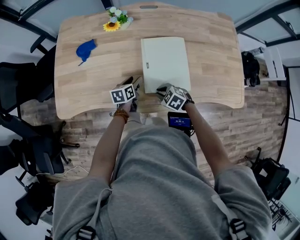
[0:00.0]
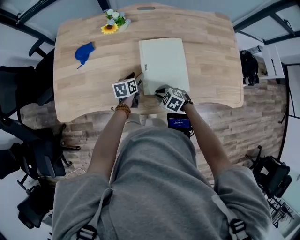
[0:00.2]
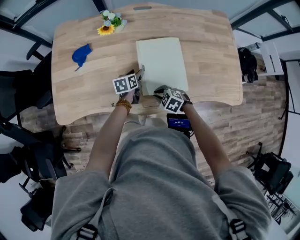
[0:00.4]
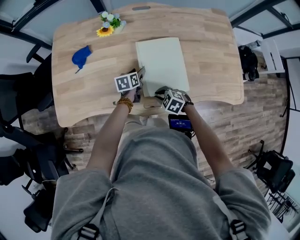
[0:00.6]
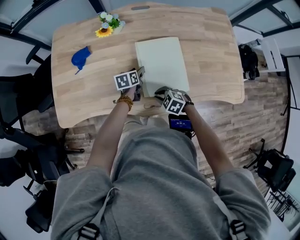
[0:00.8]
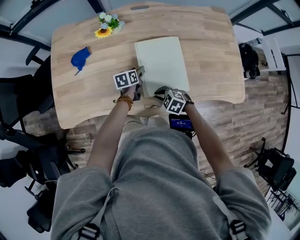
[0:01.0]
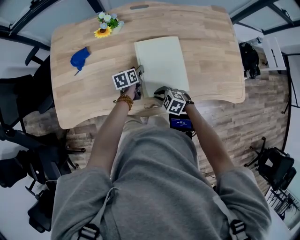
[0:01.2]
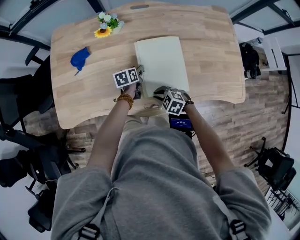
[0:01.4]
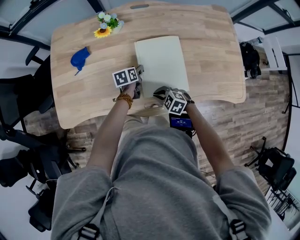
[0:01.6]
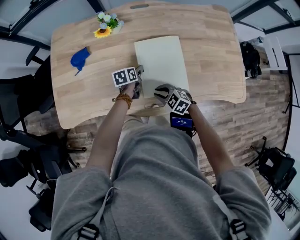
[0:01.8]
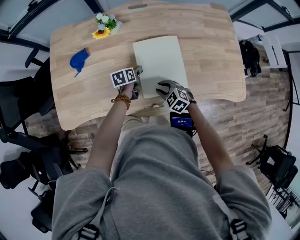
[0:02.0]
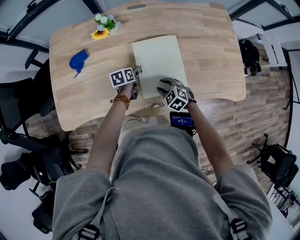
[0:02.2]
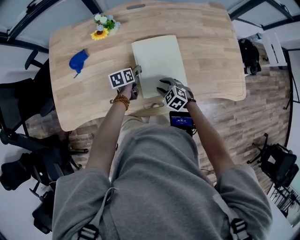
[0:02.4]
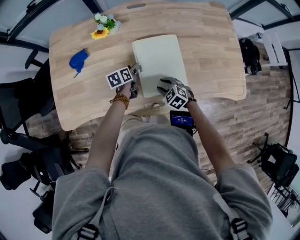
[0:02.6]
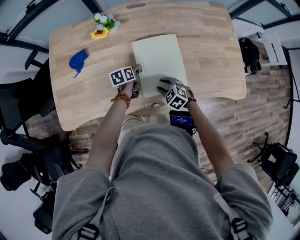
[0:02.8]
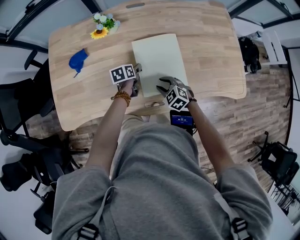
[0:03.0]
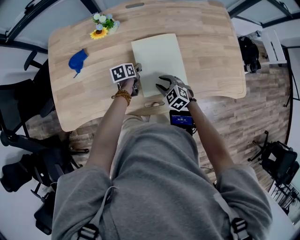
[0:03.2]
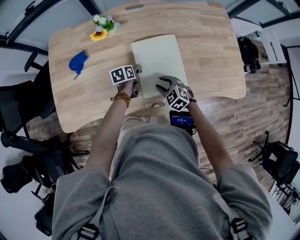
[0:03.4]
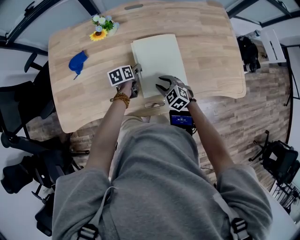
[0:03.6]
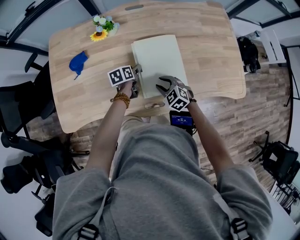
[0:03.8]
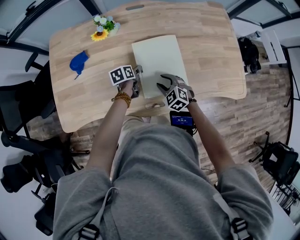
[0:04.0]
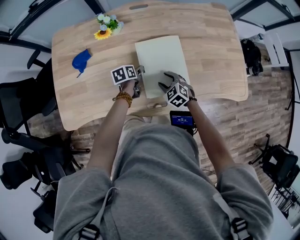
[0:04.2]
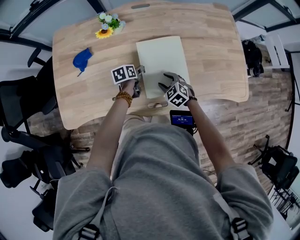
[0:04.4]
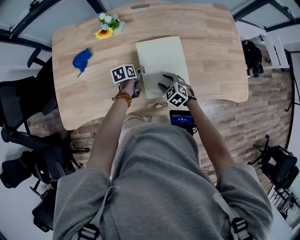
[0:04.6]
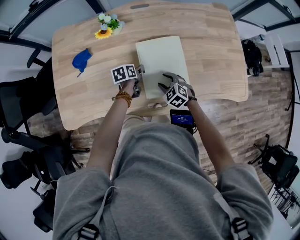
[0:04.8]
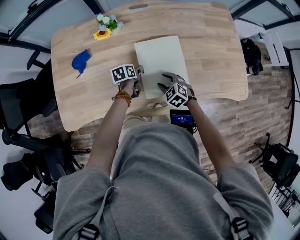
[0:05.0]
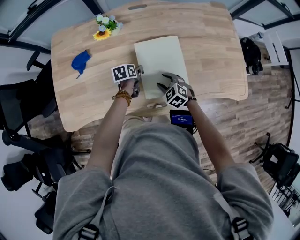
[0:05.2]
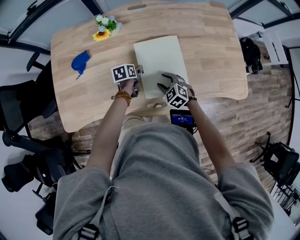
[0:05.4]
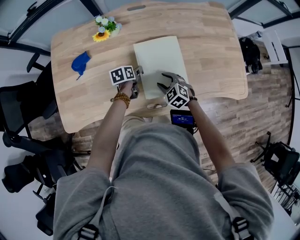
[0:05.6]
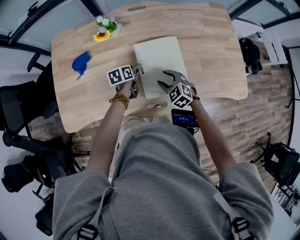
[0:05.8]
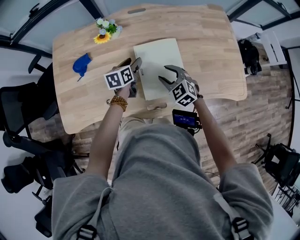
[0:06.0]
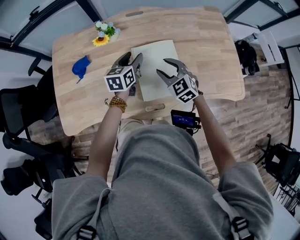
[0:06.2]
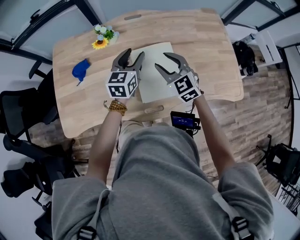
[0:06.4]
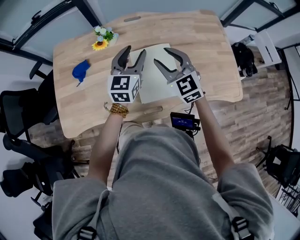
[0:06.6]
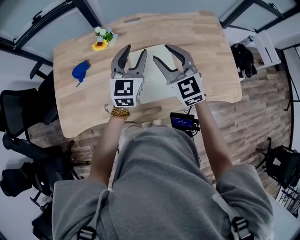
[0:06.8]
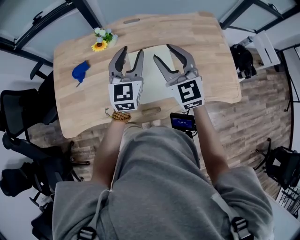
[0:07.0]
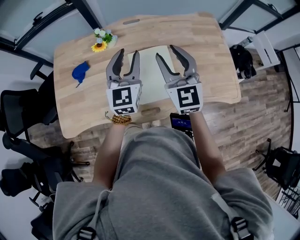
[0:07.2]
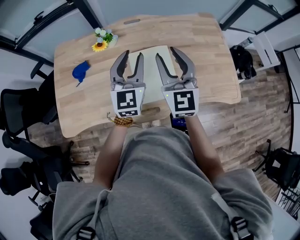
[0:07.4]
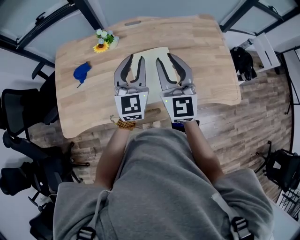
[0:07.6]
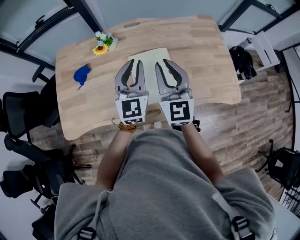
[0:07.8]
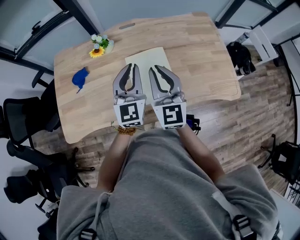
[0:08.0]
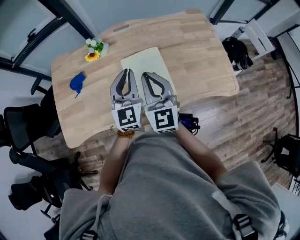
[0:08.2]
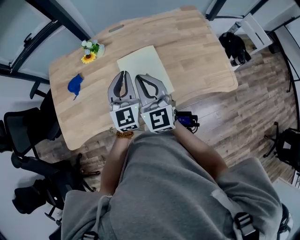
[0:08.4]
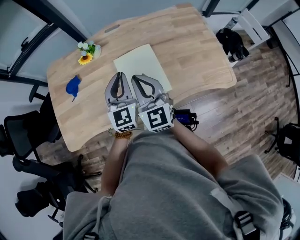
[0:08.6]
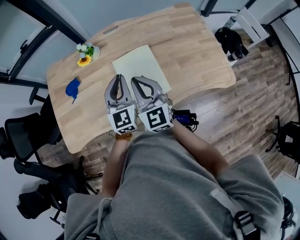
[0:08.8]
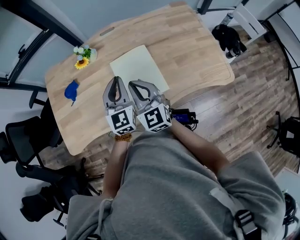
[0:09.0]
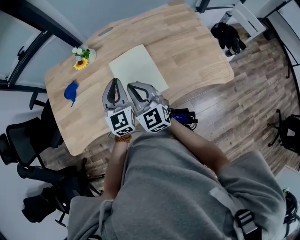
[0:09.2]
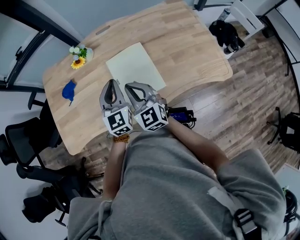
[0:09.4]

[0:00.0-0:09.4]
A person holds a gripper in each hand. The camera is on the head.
0:00.0 to 0:01.6: The left gripper travels forward and to the right by approximately 10 cm.
0:01.6 to 0:03.2: The right gripper is displaced forward by some 5 cm, swivels roughly 20 degrees, and opens up.
0:03.2 to 0:04.8: The grippers make only small movements.
0:04.8 to 0:06.2: The two grippers go about 15 cm upward. The right gripper swivels some 20 degrees. The left gripper rotates about 40 degrees.
0:06.2 to 0:07.8: The right gripper shifts some 20 cm upward, tilts its fingers some 30 degrees upward, and closes its fingers, while the left gripper is displaced upward and backward by some 20 cm, changes its angle by some 40 degrees, and closes up.
0:07.8 to 0:09.4: The right gripper is displaced downward by approximately 10 cm. Meanwhile the left gripper travels downward by roughly 10 cm.

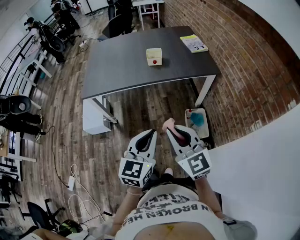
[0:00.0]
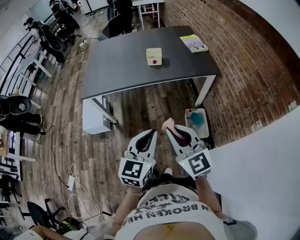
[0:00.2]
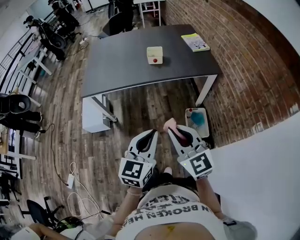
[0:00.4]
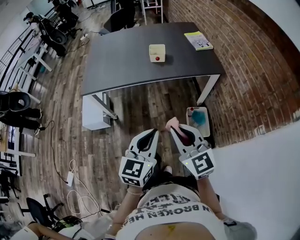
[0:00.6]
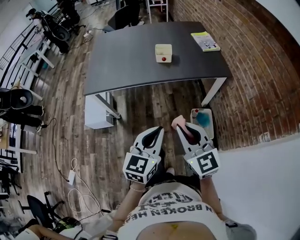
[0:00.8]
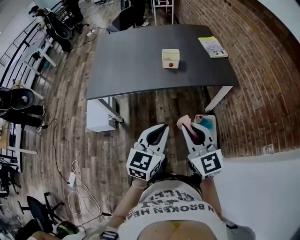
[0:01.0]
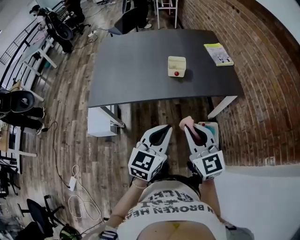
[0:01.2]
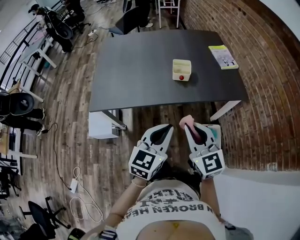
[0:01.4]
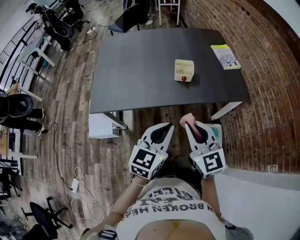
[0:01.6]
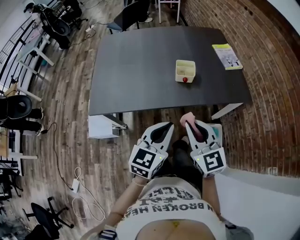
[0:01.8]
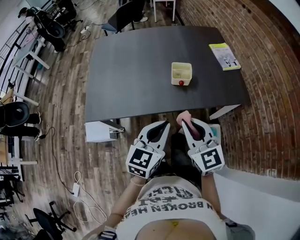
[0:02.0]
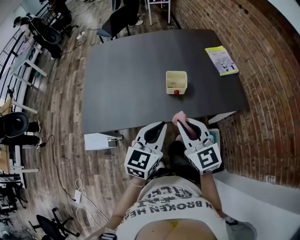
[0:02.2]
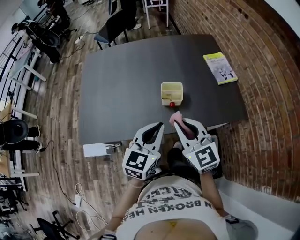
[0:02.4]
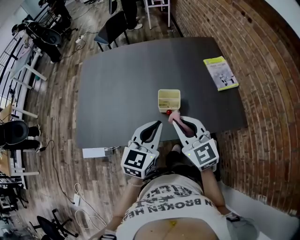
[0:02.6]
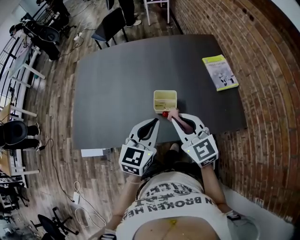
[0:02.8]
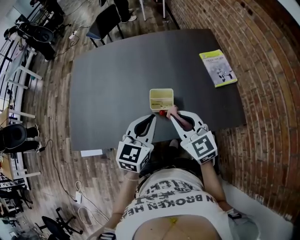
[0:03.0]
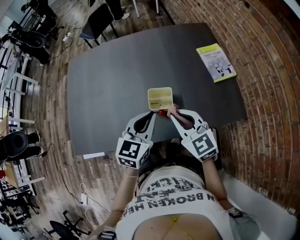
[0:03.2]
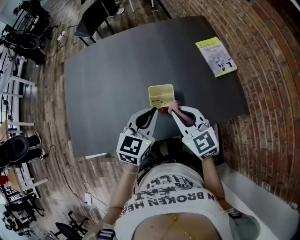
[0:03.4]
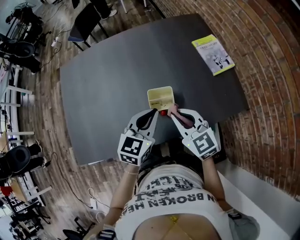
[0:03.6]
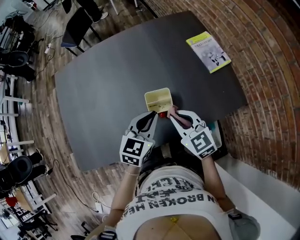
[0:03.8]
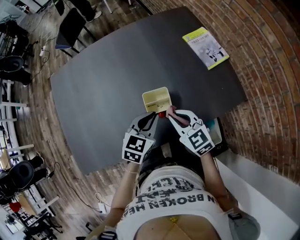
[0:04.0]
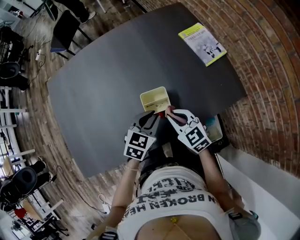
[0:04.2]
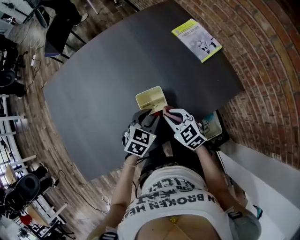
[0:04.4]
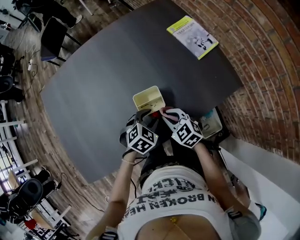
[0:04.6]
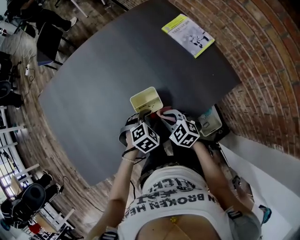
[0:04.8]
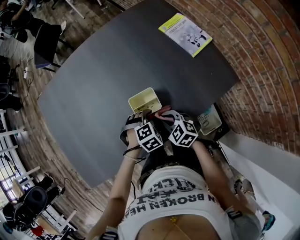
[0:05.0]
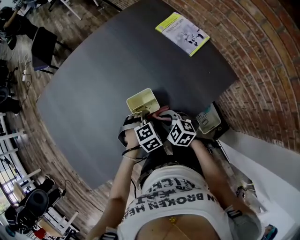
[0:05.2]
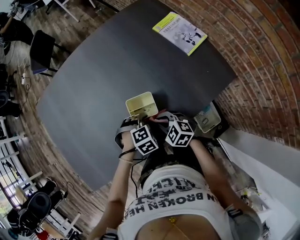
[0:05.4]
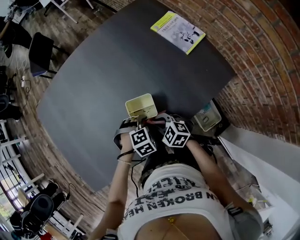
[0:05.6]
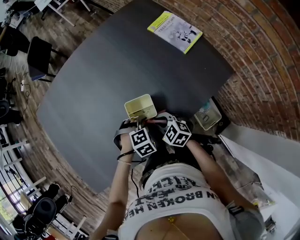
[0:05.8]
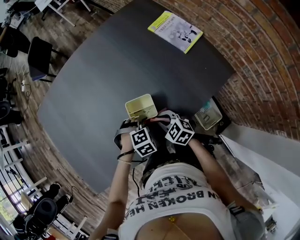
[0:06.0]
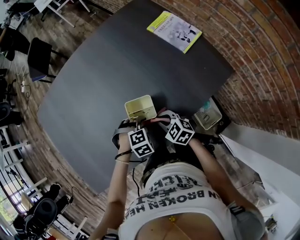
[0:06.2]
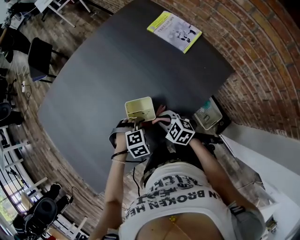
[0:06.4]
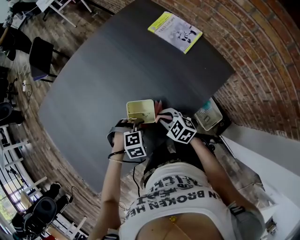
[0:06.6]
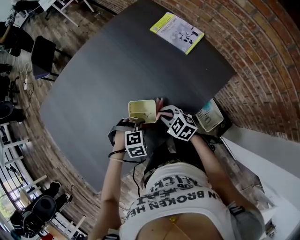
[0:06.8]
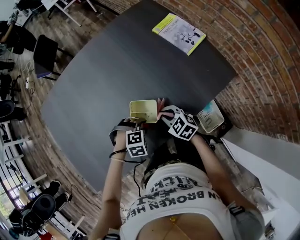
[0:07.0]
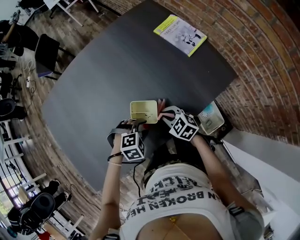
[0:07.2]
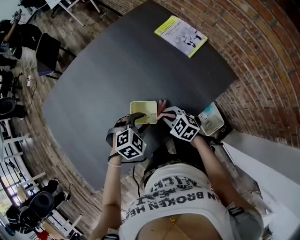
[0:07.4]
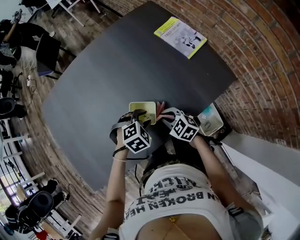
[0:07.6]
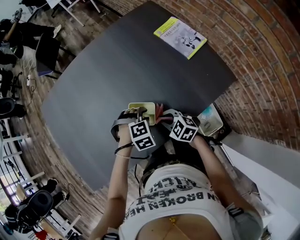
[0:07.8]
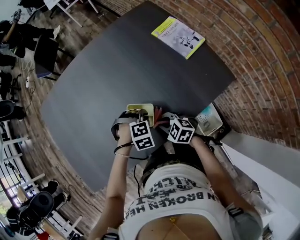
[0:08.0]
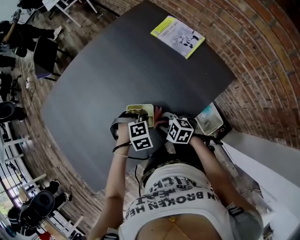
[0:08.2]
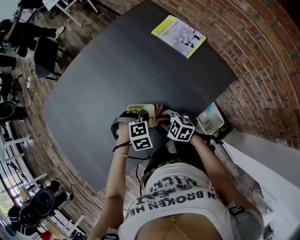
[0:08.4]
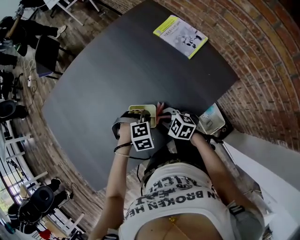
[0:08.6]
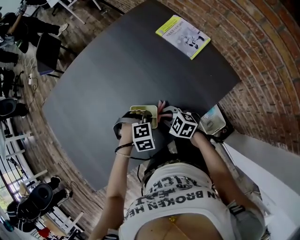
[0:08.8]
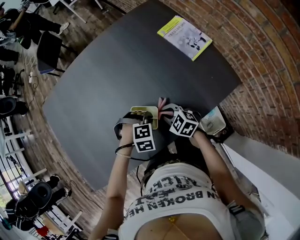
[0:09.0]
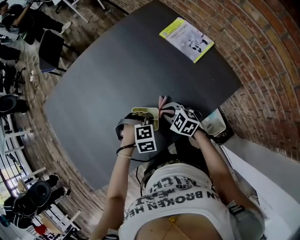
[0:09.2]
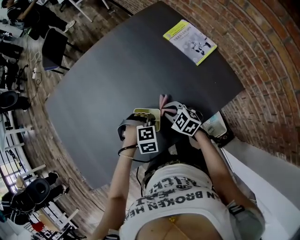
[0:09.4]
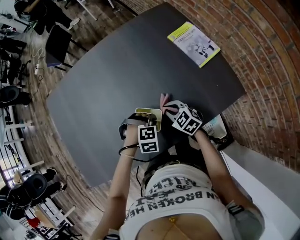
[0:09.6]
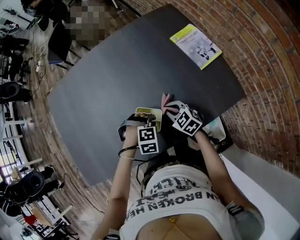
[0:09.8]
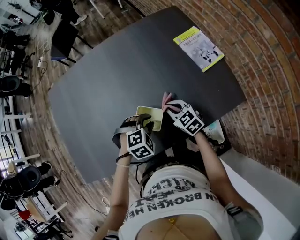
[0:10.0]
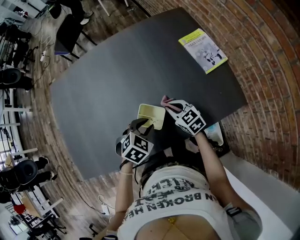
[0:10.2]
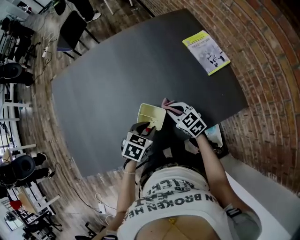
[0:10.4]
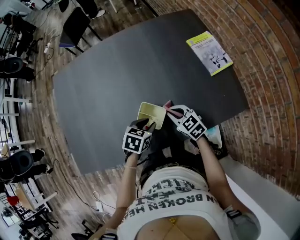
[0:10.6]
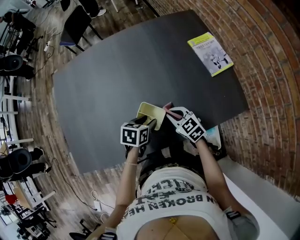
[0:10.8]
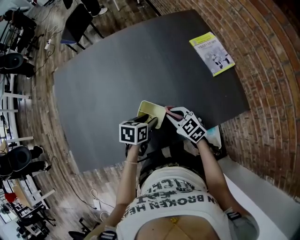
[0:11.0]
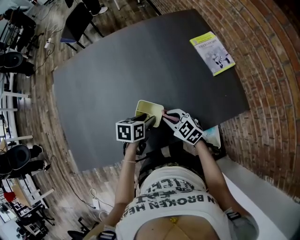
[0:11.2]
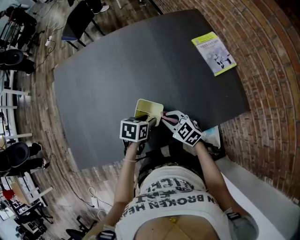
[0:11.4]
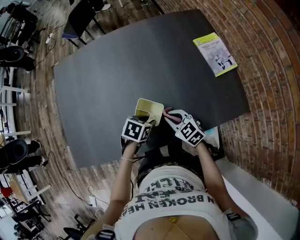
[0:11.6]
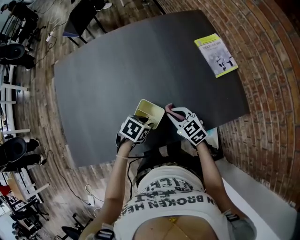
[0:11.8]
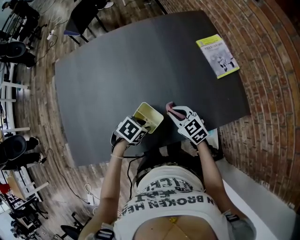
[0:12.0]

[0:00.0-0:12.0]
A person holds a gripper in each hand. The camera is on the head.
0:00.0 to 0:01.6: The two grippers go about 30 cm forward.
0:01.6 to 0:03.0: The grippers both shift forward by some 30 cm.
0:03.0 to 0:04.4: Both grippers move downward, about 15 cm. The left gripper swivels some 40 degrees, and opens; the right gripper rotates approximately 20 degrees.
0:04.4 to 0:06.0: The grippers both shift downward by about 10 cm. The left gripper twists approximately 40 degrees clockwise, seen from behind.
0:06.0 to 0:07.6: The left gripper heads upward, covering about 5 cm.
0:07.6 to 0:09.0: The left gripper rotates approximately 20 degrees, and closes.
0:09.0 to 0:10.4: The left gripper ends up about 5 cm from where it was, and rotates around the line of its fingers by approximately 70 degrees, counterclockwise from behind.
0:10.4 to 0:12.0: The left gripper moves approximately 10 cm, and turns by approximately 20 degrees.

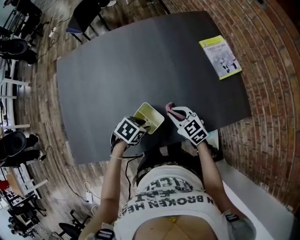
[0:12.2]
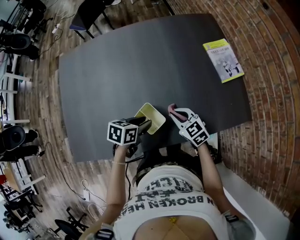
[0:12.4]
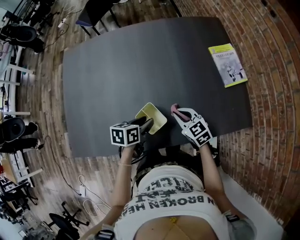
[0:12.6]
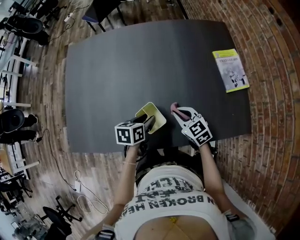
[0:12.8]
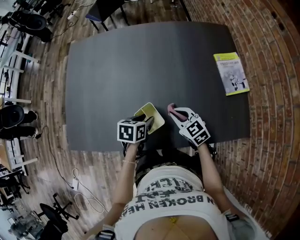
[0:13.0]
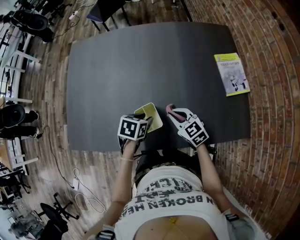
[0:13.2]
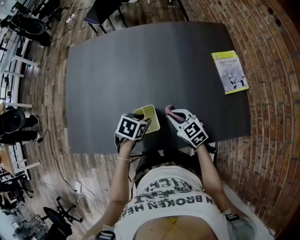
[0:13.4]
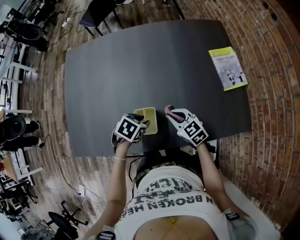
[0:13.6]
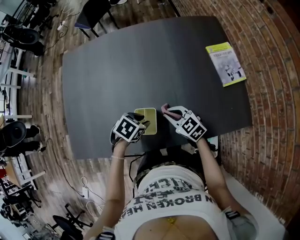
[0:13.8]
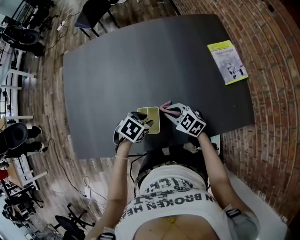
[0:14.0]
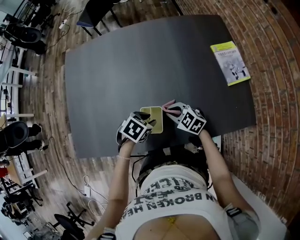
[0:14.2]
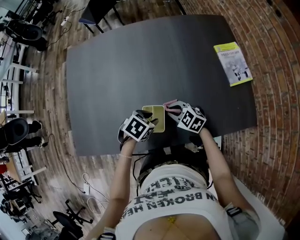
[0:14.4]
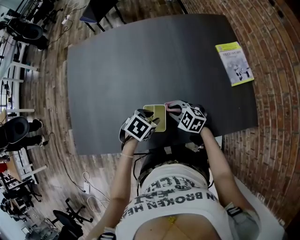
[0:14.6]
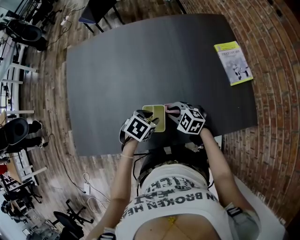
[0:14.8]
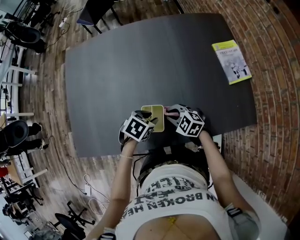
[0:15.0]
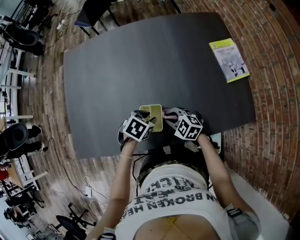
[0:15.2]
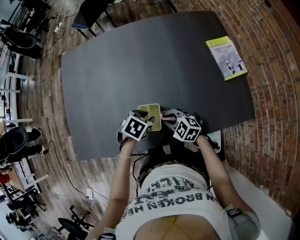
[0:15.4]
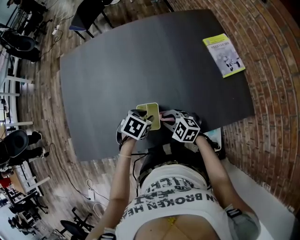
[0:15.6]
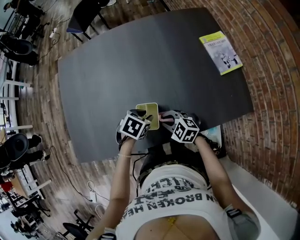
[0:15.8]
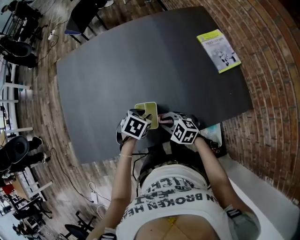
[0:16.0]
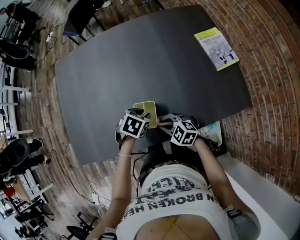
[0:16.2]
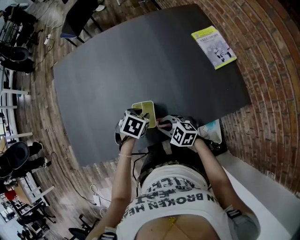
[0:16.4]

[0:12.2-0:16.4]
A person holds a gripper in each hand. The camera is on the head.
0:13.6 to 0:15.0: The right gripper shifts by some 5 cm, and changes its angle by some 30 degrees.
0:15.0 to 0:16.4: The right gripper changes place by about 10 cm.
